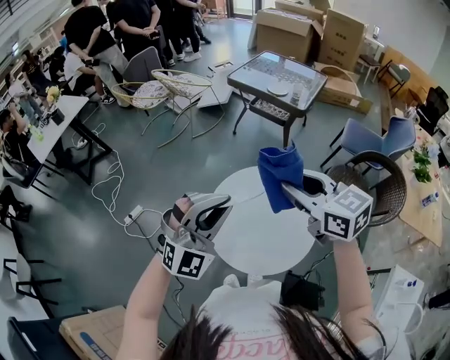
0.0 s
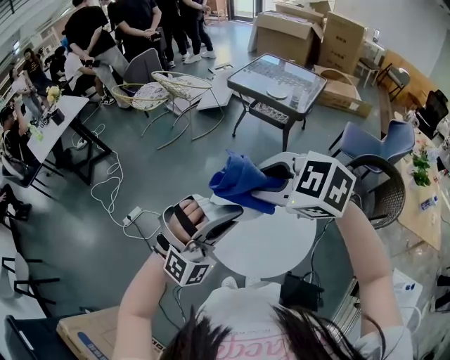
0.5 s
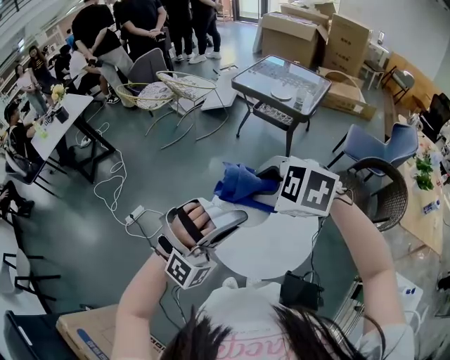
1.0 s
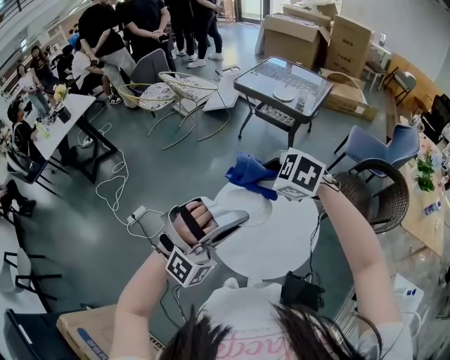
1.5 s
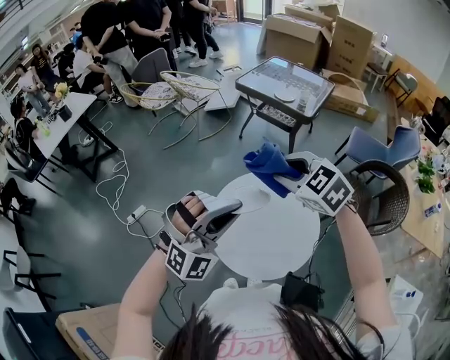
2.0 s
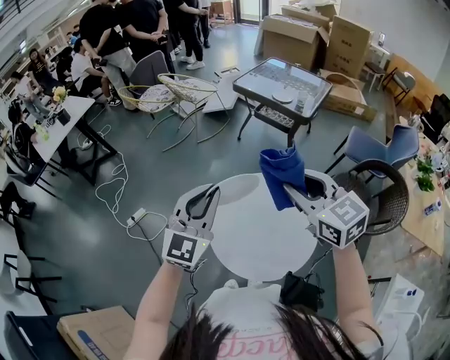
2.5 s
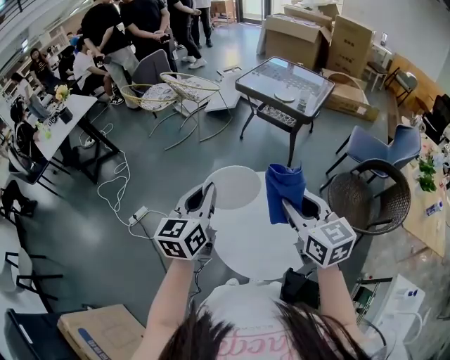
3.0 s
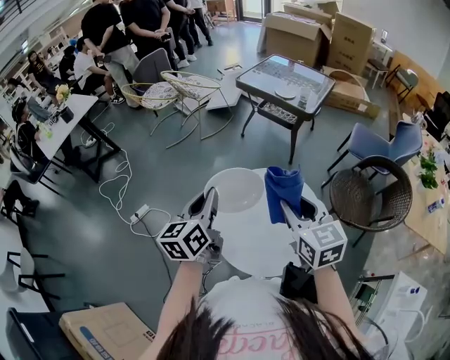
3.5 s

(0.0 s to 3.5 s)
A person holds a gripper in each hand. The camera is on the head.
0.0 s - 2.0 s: The right gripper shifts approximately 5 cm forward, and swivels some 40 degrees.
2.0 s - 3.5 s: The right gripper shifts about 10 cm backward, and swivels some 40 degrees; the left gripper is displaced to the left, forward and downward by roughly 10 cm, and rolls counterclockwise, seen from behind, by approximately 100 degrees.

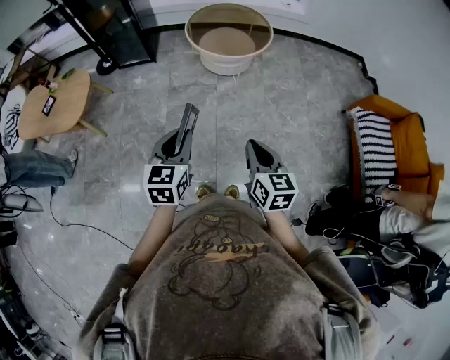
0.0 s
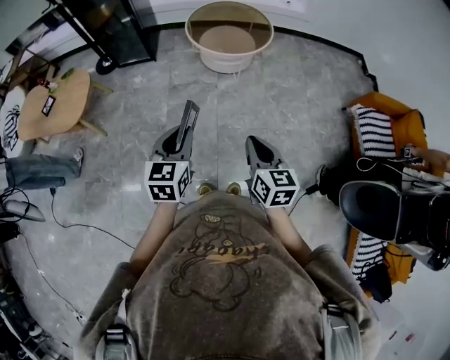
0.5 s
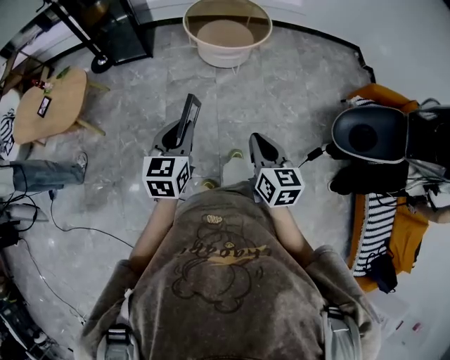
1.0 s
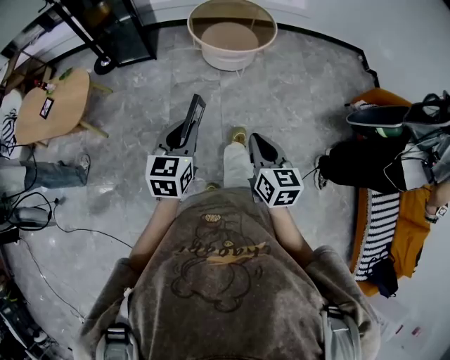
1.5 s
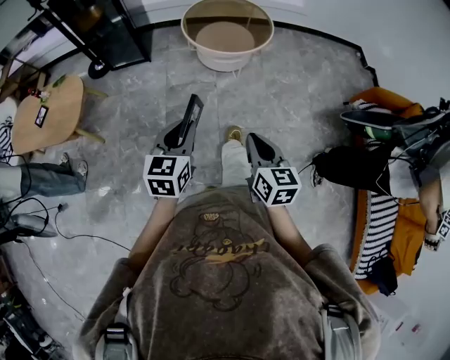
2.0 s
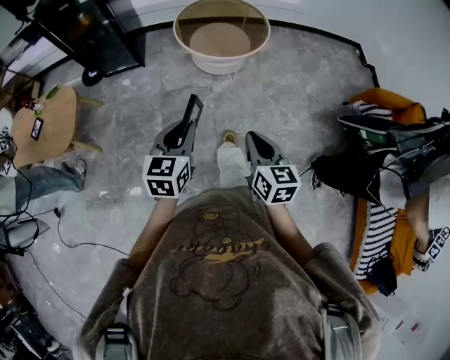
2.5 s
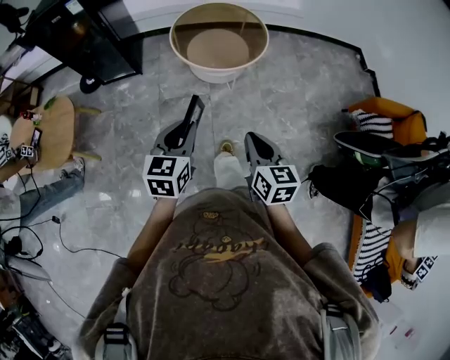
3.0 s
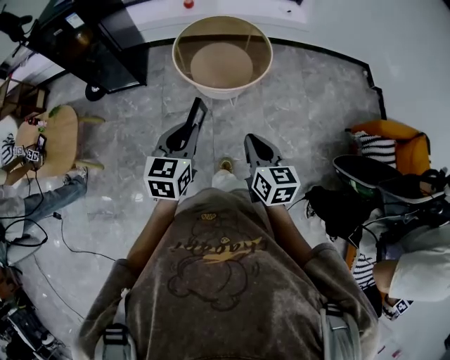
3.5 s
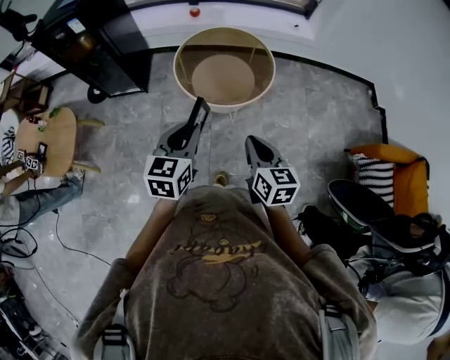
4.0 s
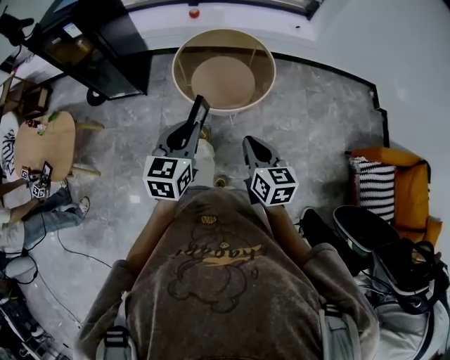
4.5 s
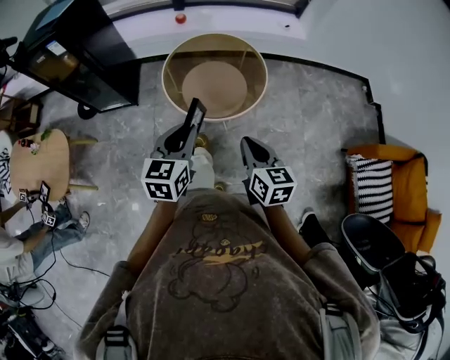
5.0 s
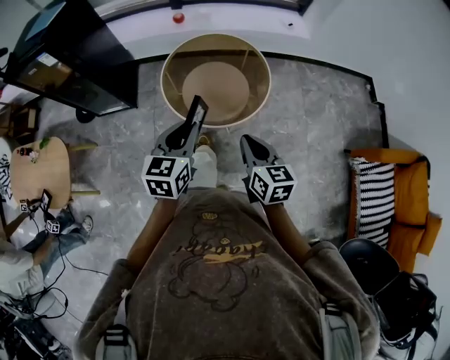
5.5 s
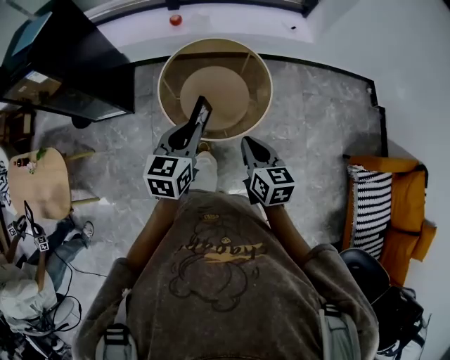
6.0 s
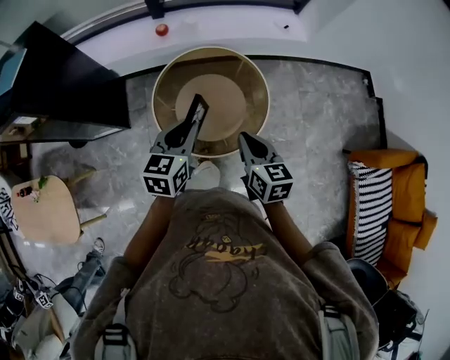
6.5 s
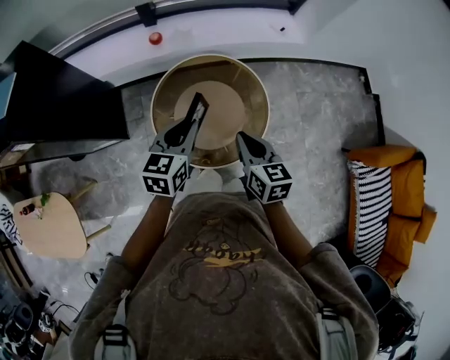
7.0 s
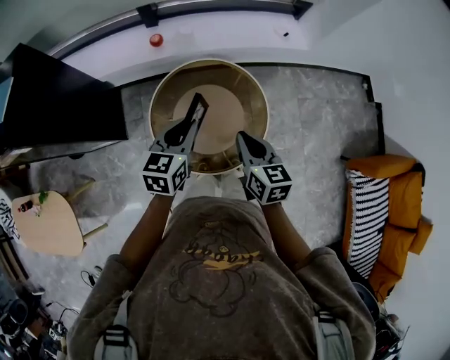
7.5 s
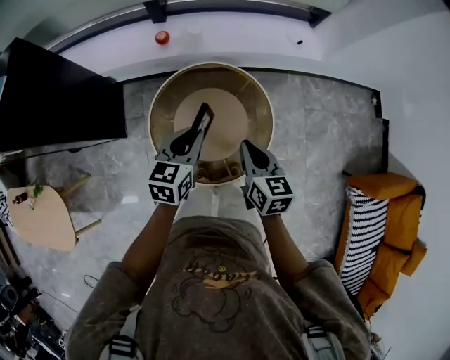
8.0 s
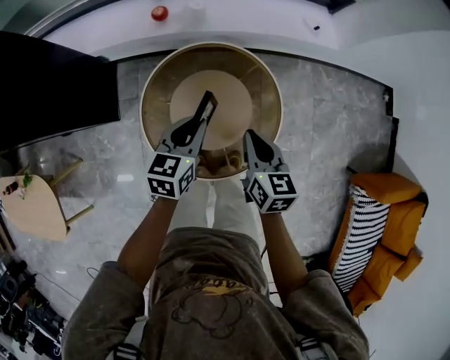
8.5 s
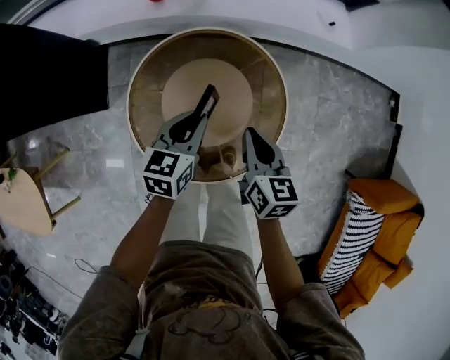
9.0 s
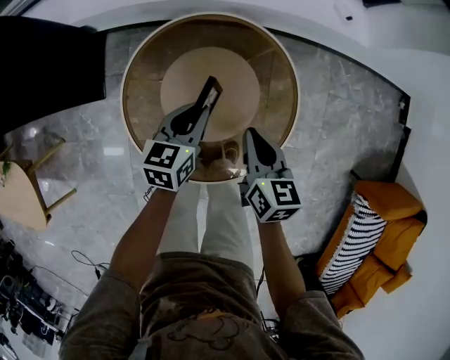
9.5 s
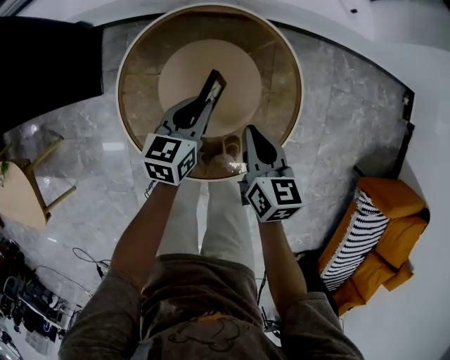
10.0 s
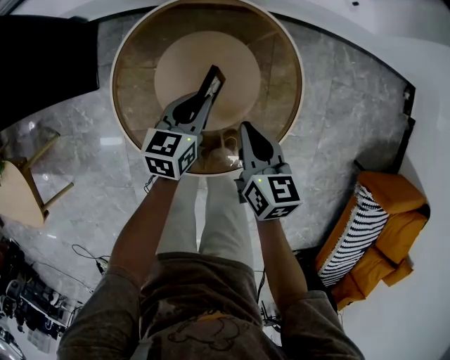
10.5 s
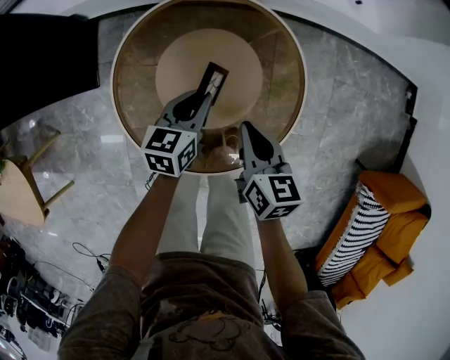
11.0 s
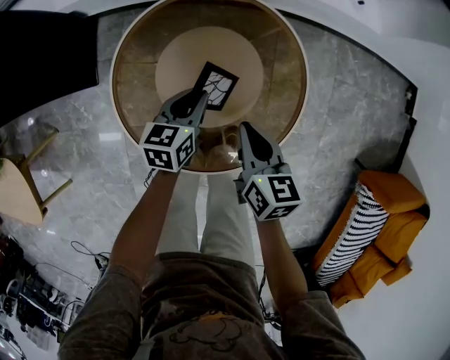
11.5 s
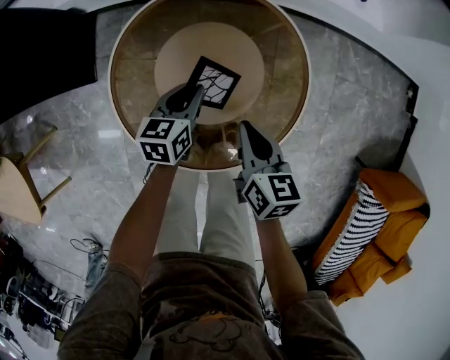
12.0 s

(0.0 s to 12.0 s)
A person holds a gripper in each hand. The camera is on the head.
0.0 s - 2.0 s: The right gripper goes about 10 cm to the left and forward, while the left gripper travels forward by roughly 5 cm.
2.0 s - 4.0 s: Both grippers travel together forward, about 30 cm.
4.0 s - 6.0 s: Both grippers move forward, some 25 cm.
6.0 s - 8.0 s: Both grippers move forward, approximately 25 cm.
8.0 s - 10.0 s: Both grippers move downward, some 25 cm.
10.0 s - 12.0 s: The left gripper goes some 5 cm downward.

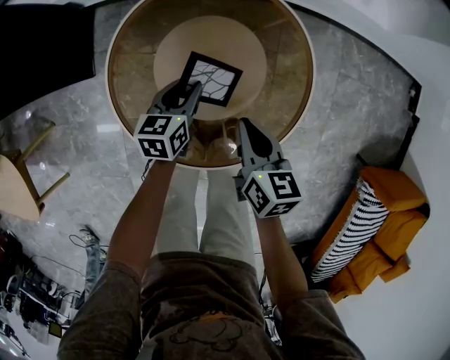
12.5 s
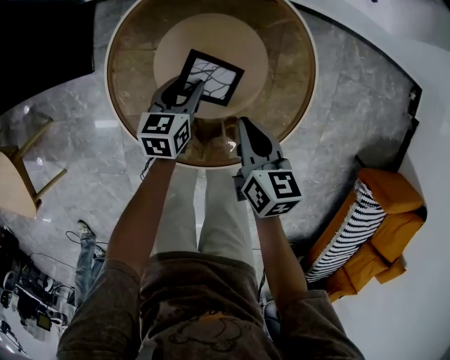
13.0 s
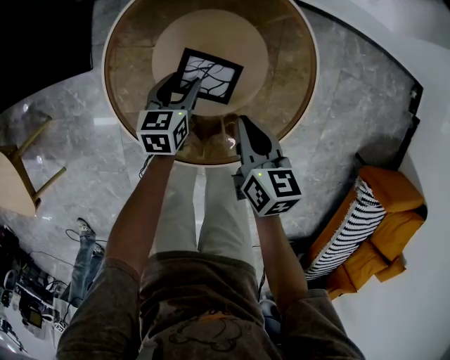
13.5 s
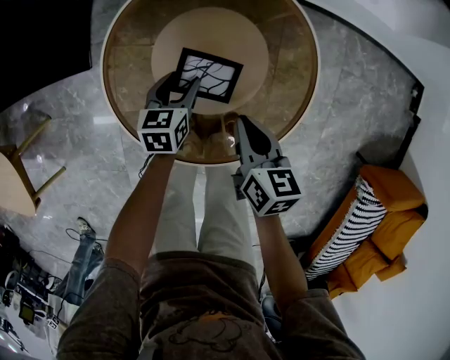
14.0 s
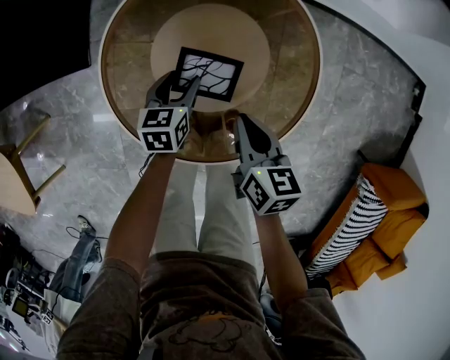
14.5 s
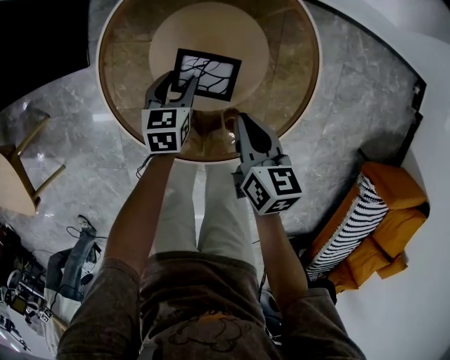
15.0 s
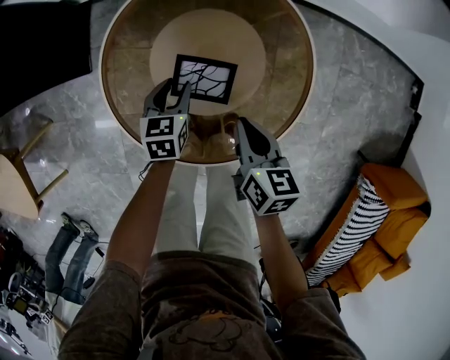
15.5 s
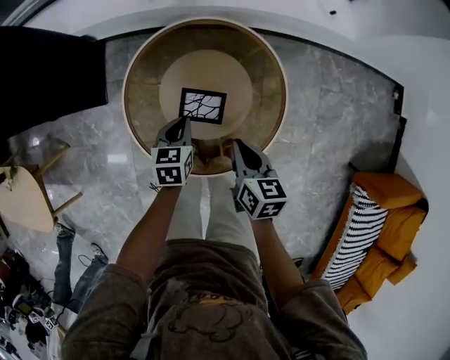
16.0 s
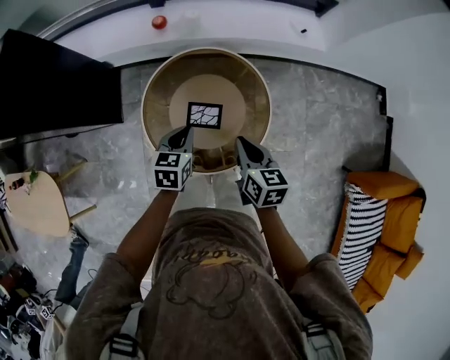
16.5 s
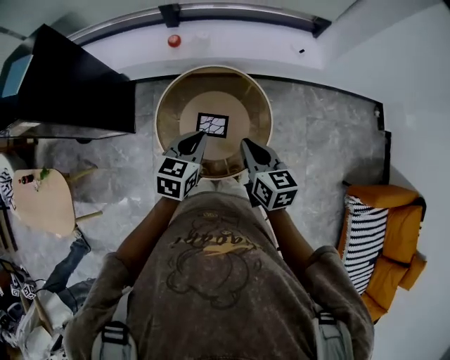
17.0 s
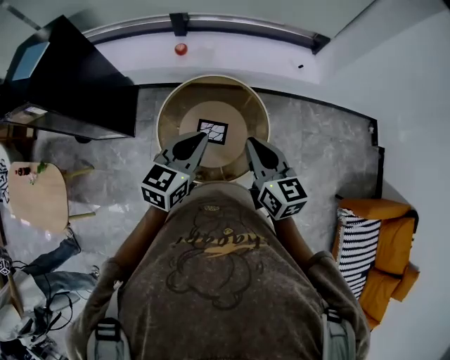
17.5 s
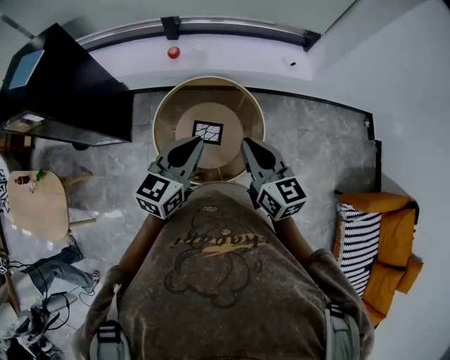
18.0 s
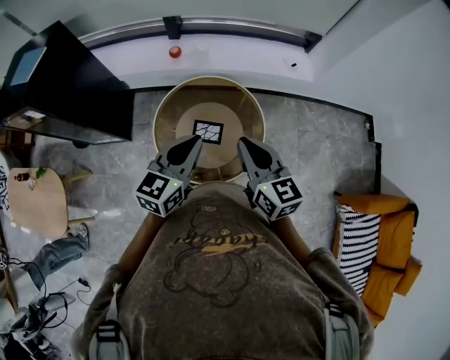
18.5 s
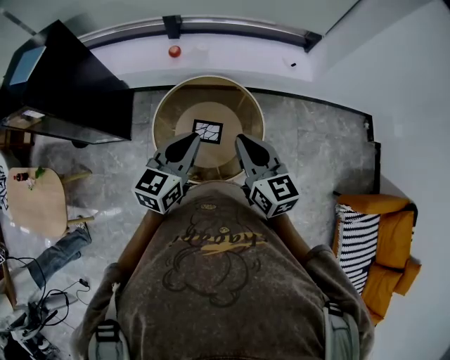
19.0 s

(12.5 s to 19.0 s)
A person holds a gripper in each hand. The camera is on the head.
12.5 s - 14.5 s: The left gripper opens its fingers.
14.5 s - 17.0 s: Both grippers move upward, some 35 cm. The left gripper changes its angle by some 20 degrees, and closes.
17.0 s - 19.0 s: The grippers both shift upward by roughly 10 cm.

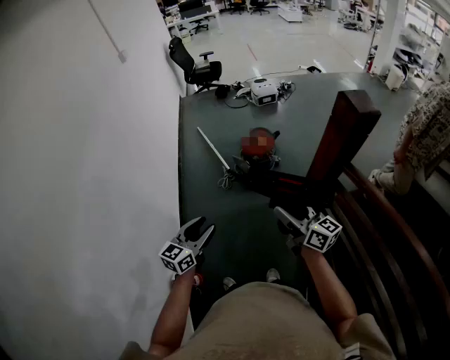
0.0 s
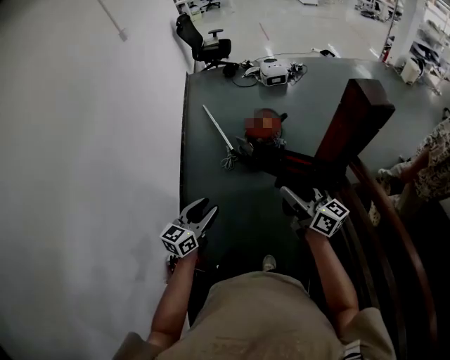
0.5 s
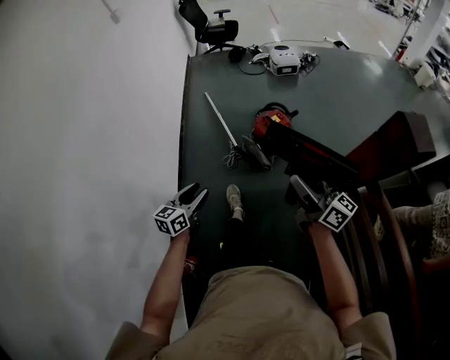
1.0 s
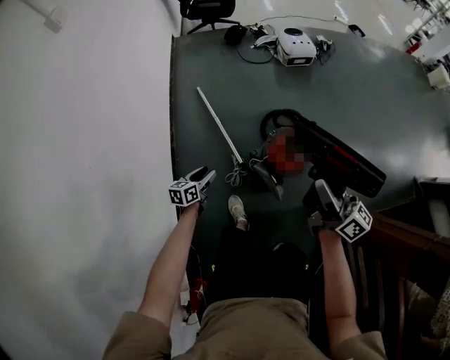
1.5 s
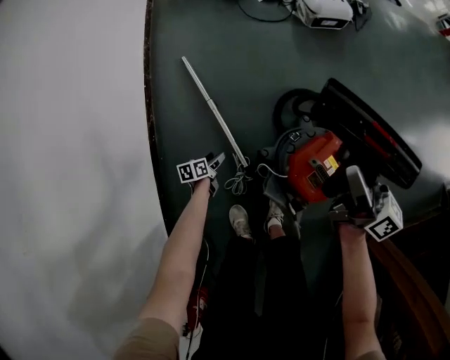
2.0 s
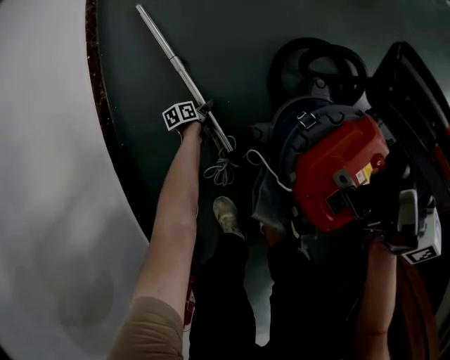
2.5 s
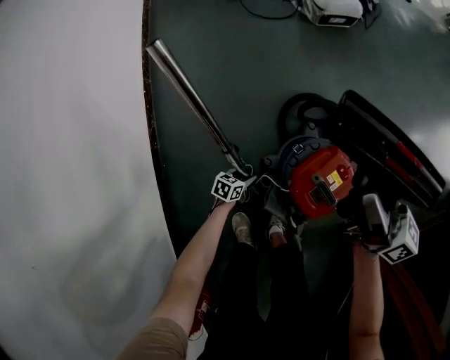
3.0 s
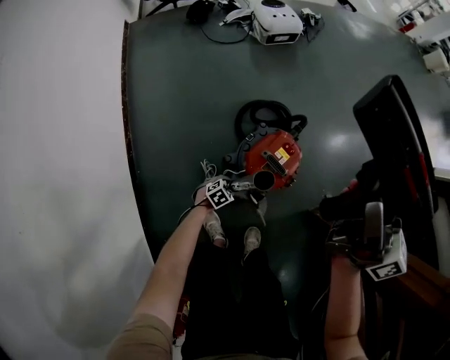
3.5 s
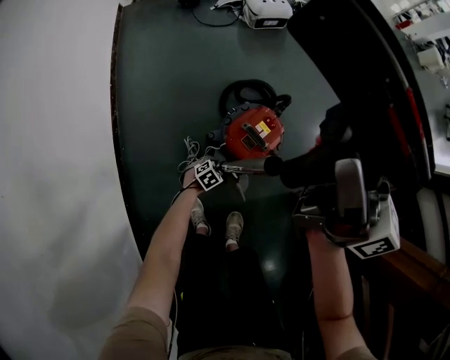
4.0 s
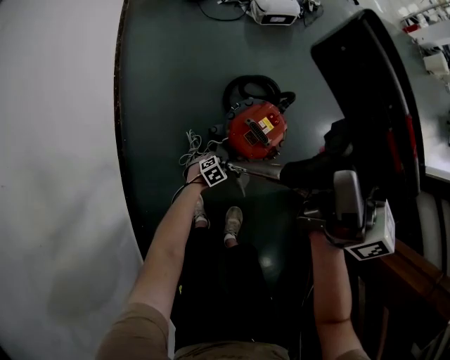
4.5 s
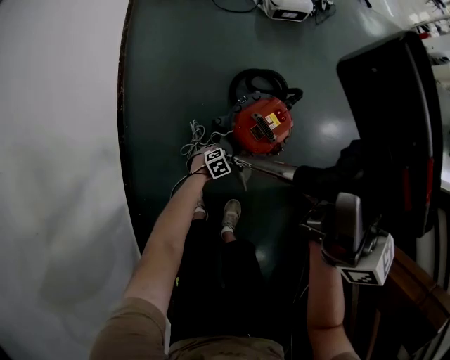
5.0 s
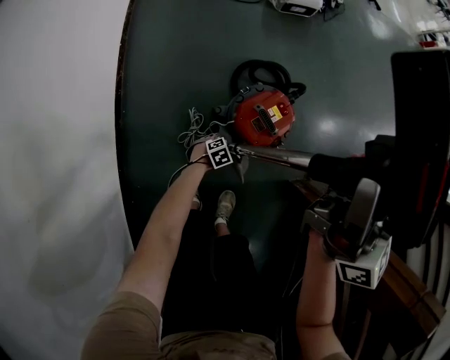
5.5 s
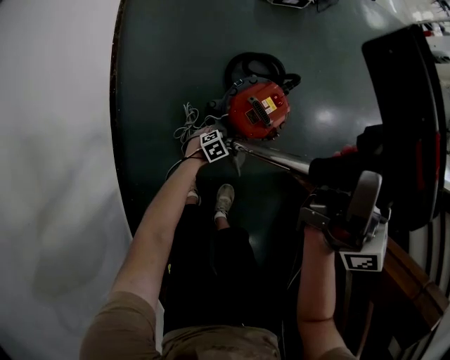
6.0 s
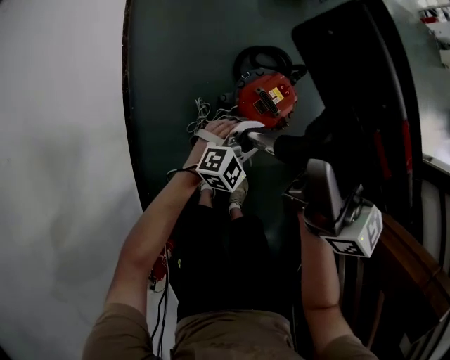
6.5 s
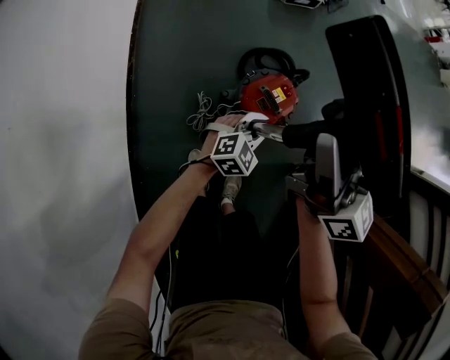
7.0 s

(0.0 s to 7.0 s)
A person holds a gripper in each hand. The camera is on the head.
0.0 s - 2.0 s: The pair of grippers is taken forward, approximately 90 cm. The left gripper shifts roughly 80 cm downward, and angles its fingers downward, by roughly 40 degrees, while the right gripper goes roughly 40 cm downward.
2.0 s - 3.5 s: The right gripper moves upward, roughly 25 cm, while the left gripper reaches about 35 cm downward, then returns, and rolls clockwise, seen from behind, by approximately 70 degrees.
3.5 s - 5.0 s: The grippers make only small movements.
5.0 s - 7.0 s: The left gripper is displaced upward by some 30 cm, and changes its angle by about 40 degrees.
